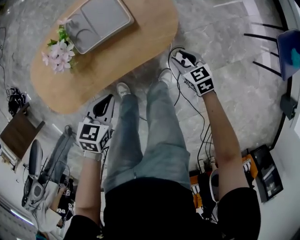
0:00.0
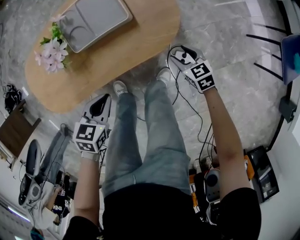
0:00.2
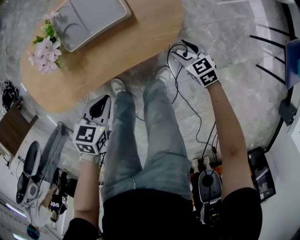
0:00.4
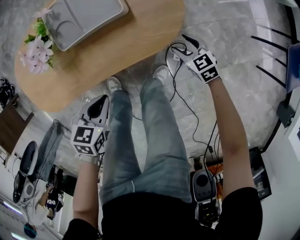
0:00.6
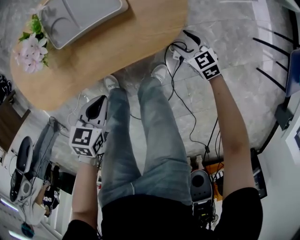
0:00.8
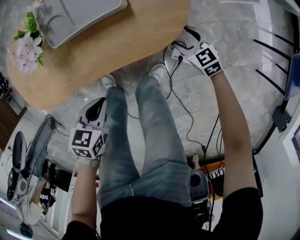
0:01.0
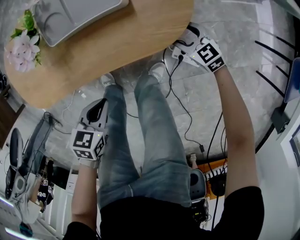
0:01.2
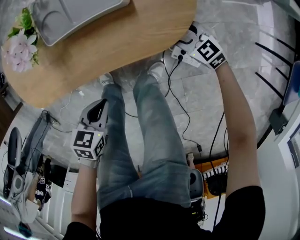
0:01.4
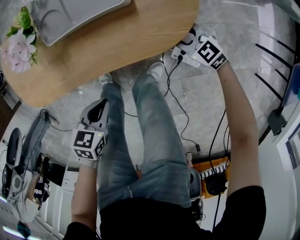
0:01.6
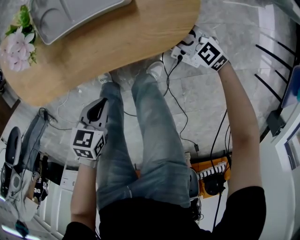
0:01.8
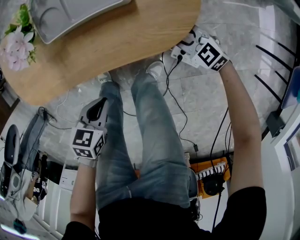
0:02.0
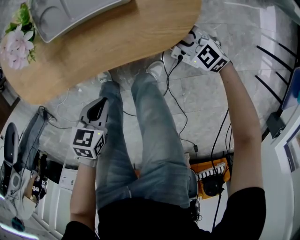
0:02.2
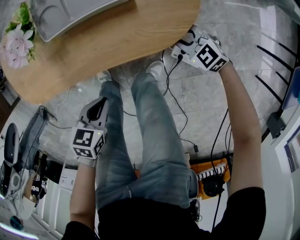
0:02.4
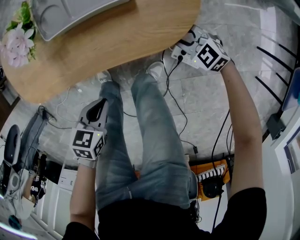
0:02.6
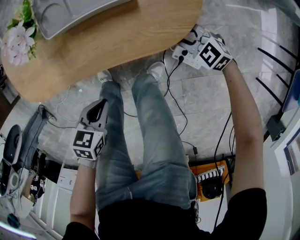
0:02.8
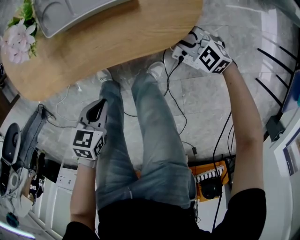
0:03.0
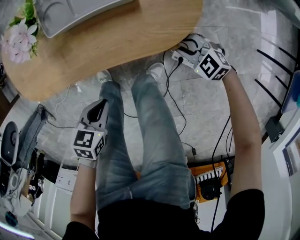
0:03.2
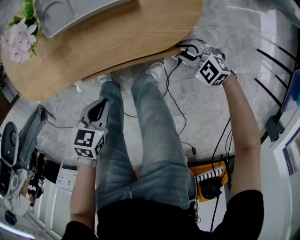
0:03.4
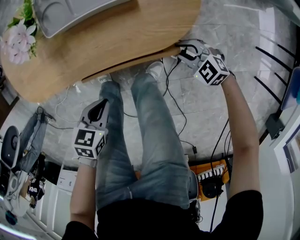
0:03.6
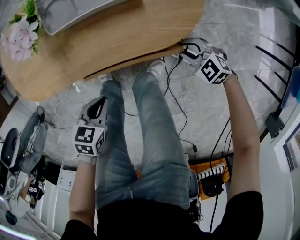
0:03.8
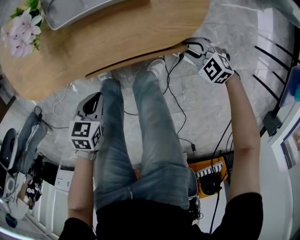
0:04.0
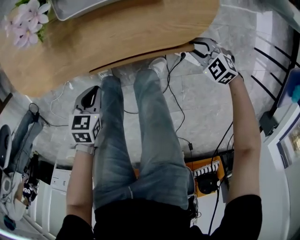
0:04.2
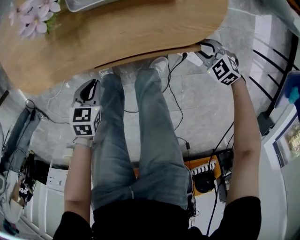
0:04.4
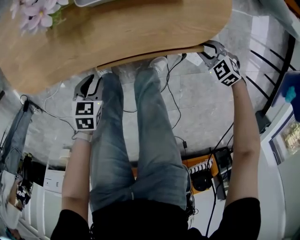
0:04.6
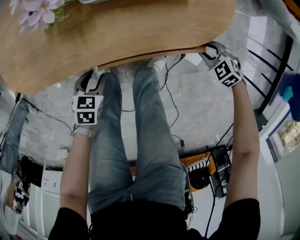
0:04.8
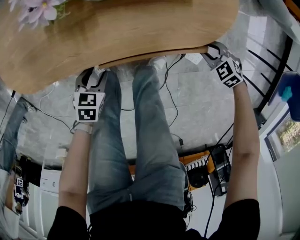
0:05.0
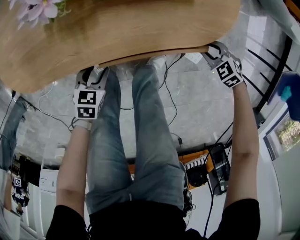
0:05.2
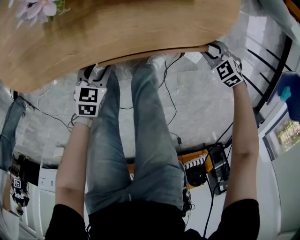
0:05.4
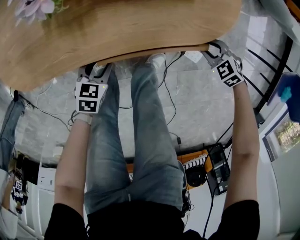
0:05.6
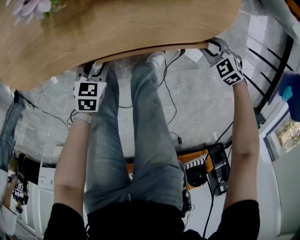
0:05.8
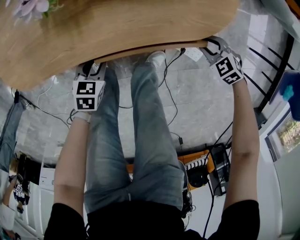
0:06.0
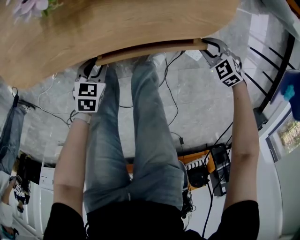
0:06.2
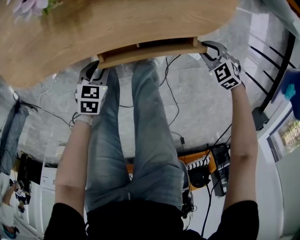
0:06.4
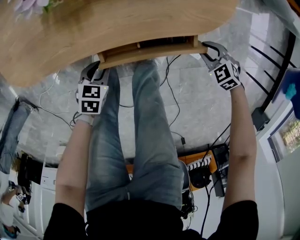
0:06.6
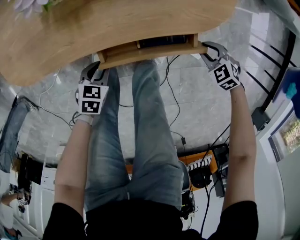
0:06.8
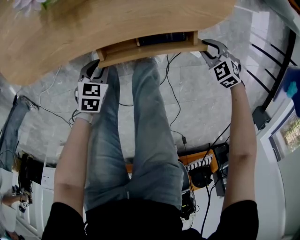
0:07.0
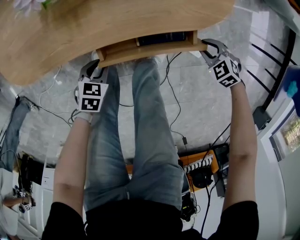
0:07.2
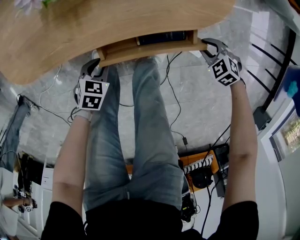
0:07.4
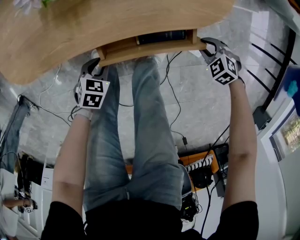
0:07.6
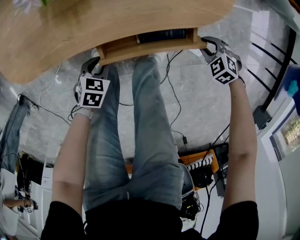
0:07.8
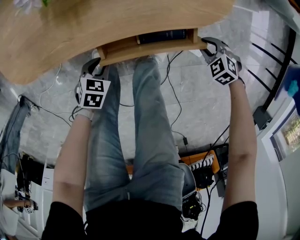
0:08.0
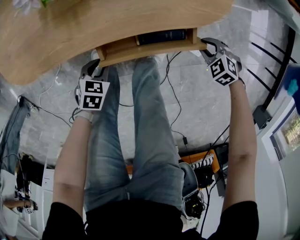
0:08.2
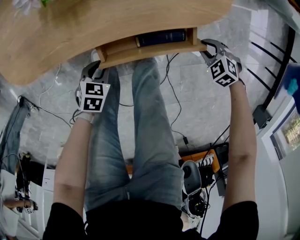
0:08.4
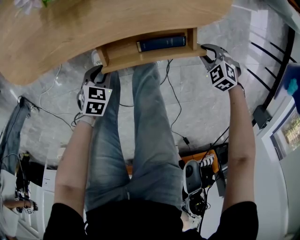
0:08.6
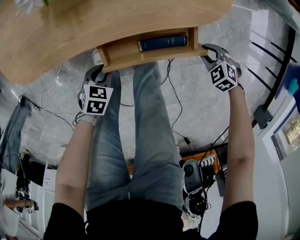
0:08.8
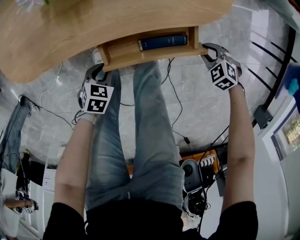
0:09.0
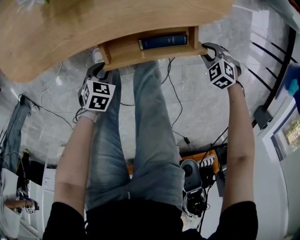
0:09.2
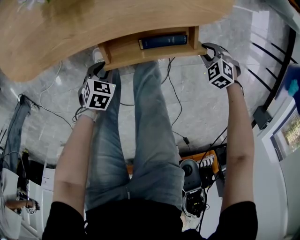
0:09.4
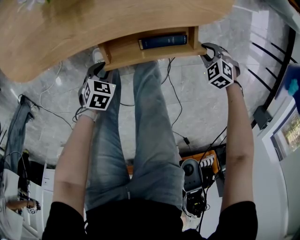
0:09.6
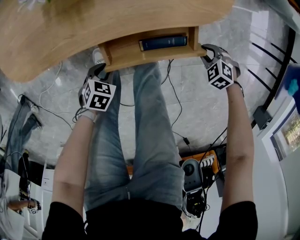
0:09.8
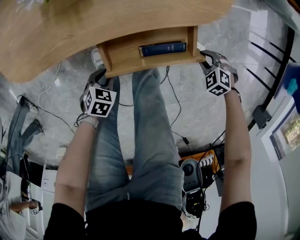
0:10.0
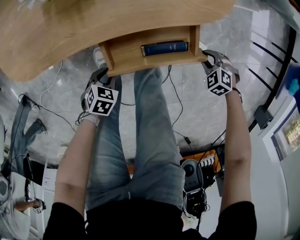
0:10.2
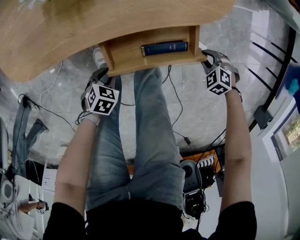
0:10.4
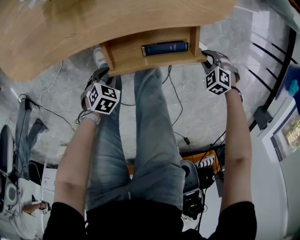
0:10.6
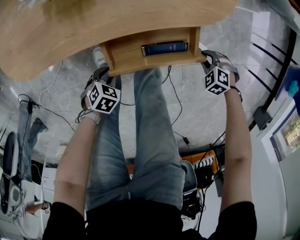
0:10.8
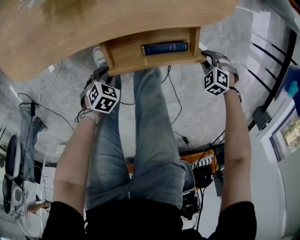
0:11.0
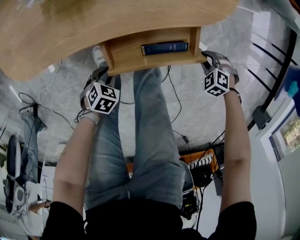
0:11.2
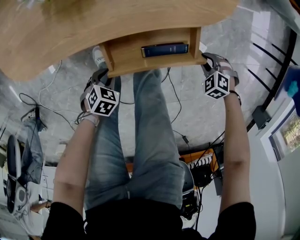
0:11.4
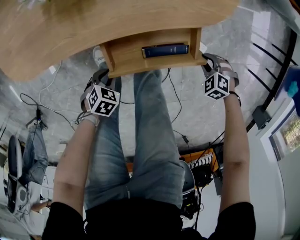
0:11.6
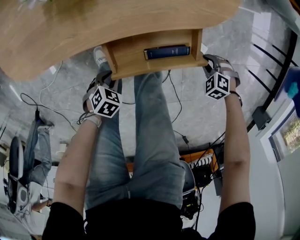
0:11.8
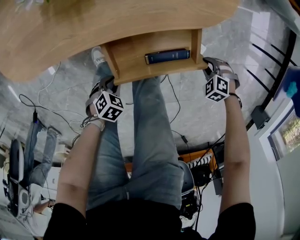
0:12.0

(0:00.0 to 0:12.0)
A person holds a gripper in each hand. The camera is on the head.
0:00.0 - 0:01.6: Both grippers move downward, some 15 cm. The right gripper turns by roughly 40 degrees, and opens, then closes once more.
0:01.6 - 0:03.0: The grippers stay close to where they were, moving slightly.
0:03.0 - 0:04.4: The right gripper ends up roughly 5 cm from where it was. The left gripper changes place by some 15 cm.
0:04.4 - 0:06.0: The left gripper goes approximately 10 cm downward, and opens up.
0:06.0 - 0:07.6: The left gripper moves some 5 cm. The right gripper shifts by approximately 5 cm.
0:07.6 - 0:09.0: The grippers make only small movements.
0:09.0 - 0:10.4: The left gripper ends up about 5 cm from where it was.
0:10.4 - 0:12.0: The grippers move only a little.

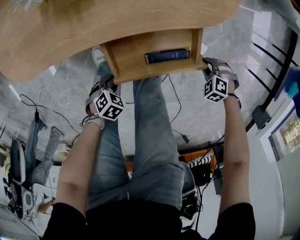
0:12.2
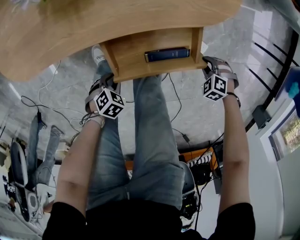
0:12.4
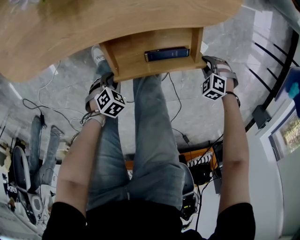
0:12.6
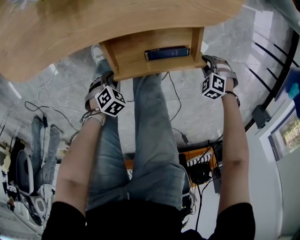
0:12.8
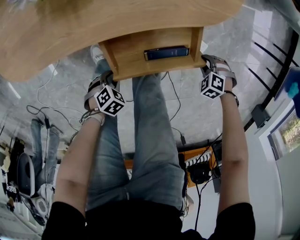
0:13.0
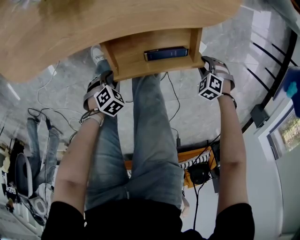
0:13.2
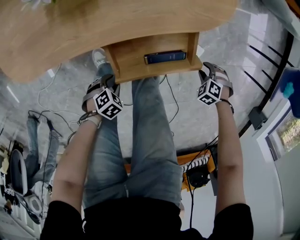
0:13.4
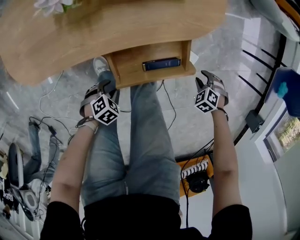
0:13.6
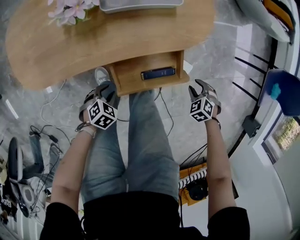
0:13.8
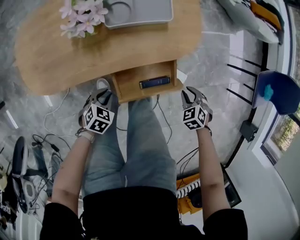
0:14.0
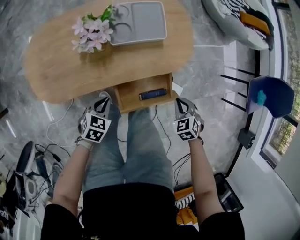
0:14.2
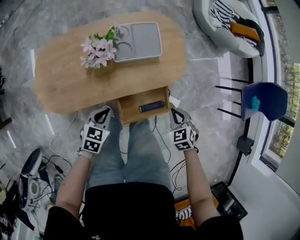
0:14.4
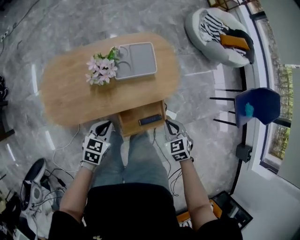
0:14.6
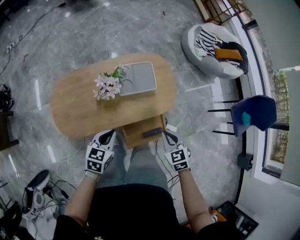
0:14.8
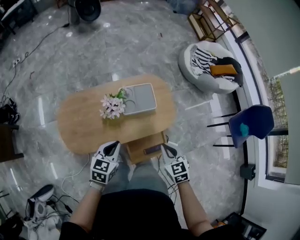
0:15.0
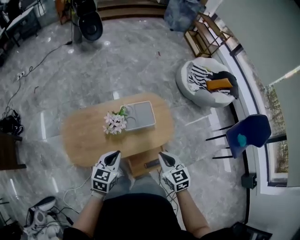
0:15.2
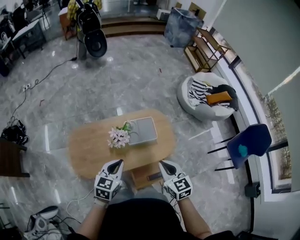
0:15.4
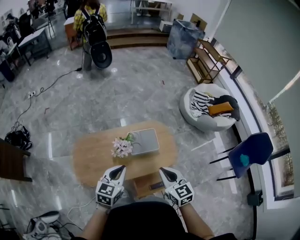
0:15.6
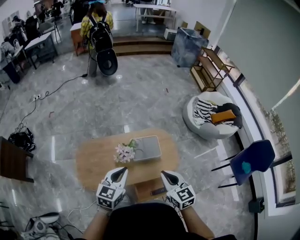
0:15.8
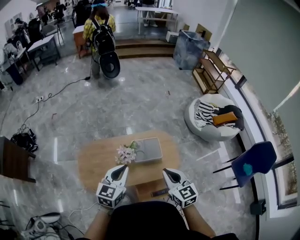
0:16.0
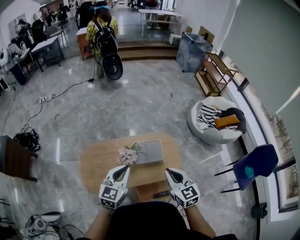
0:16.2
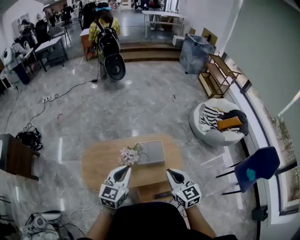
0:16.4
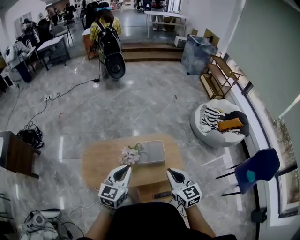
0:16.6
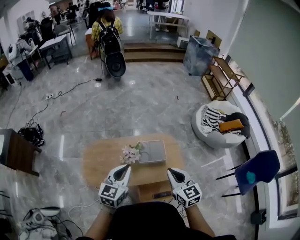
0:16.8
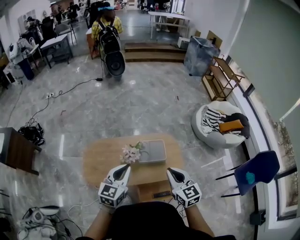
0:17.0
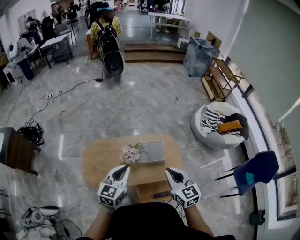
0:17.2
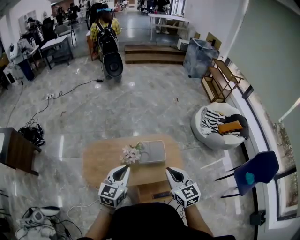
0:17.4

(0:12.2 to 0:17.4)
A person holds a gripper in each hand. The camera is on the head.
0:12.2 - 0:14.0: The grippers both shift upward by roughly 20 cm. The right gripper rotates roughly 30 degrees.
0:14.0 - 0:15.6: The two grippers go some 60 cm upward. The left gripper tips its fingers upward by about 40 degrees. Meanwhile the right gripper angles its fingers upward, by some 50 degrees.
0:15.6 - 0:17.4: The two grippers go some 5 cm upward.

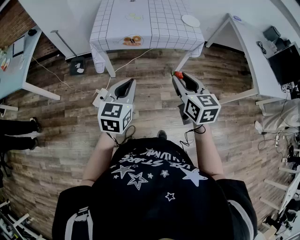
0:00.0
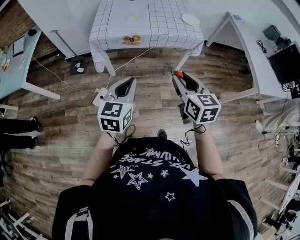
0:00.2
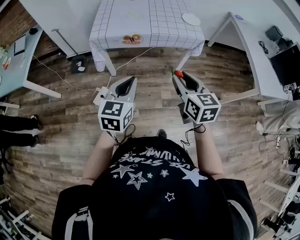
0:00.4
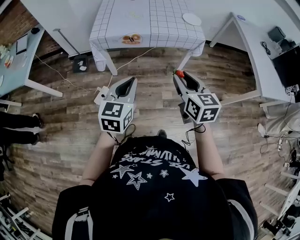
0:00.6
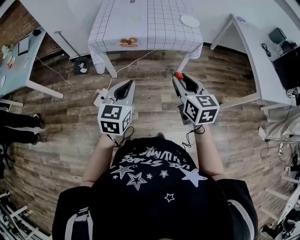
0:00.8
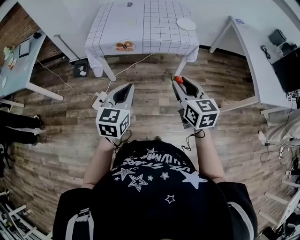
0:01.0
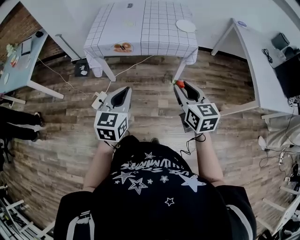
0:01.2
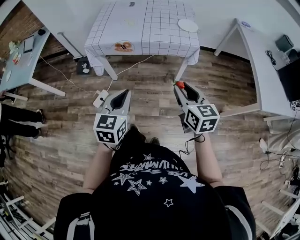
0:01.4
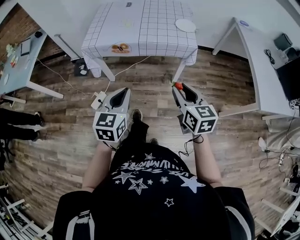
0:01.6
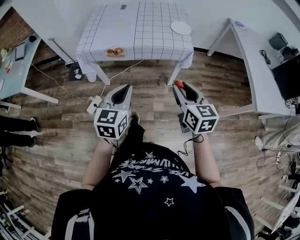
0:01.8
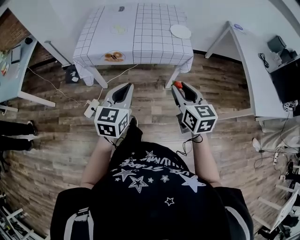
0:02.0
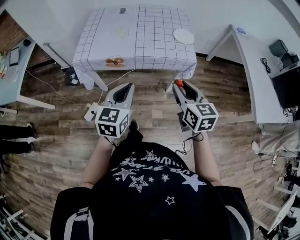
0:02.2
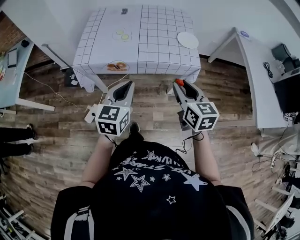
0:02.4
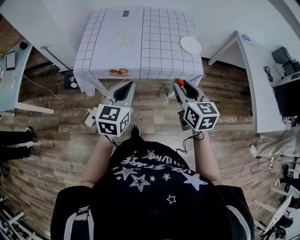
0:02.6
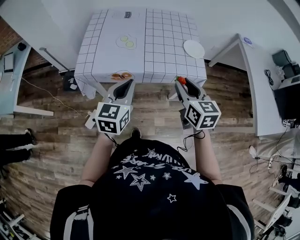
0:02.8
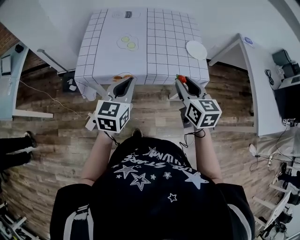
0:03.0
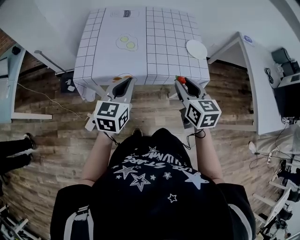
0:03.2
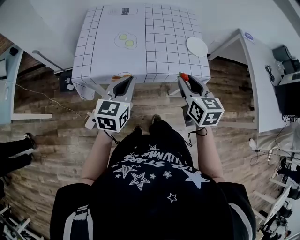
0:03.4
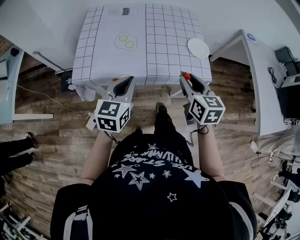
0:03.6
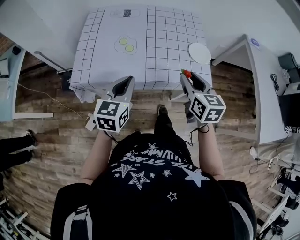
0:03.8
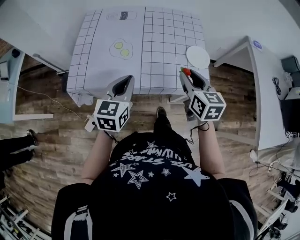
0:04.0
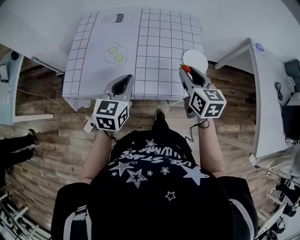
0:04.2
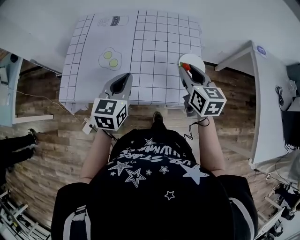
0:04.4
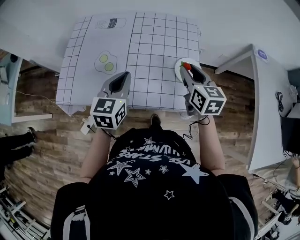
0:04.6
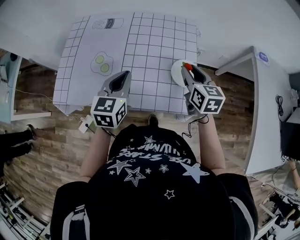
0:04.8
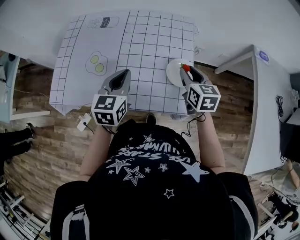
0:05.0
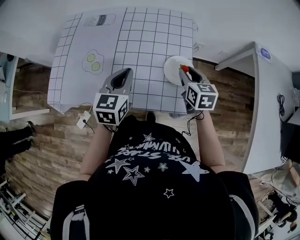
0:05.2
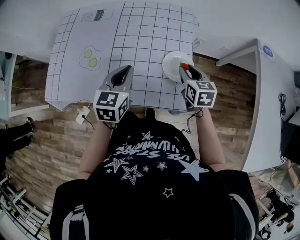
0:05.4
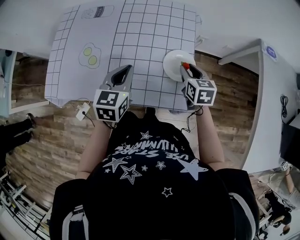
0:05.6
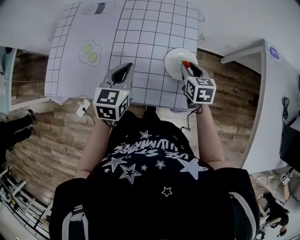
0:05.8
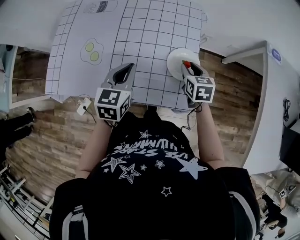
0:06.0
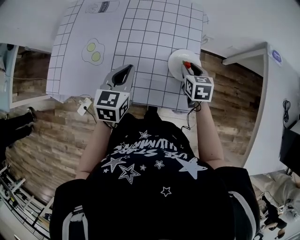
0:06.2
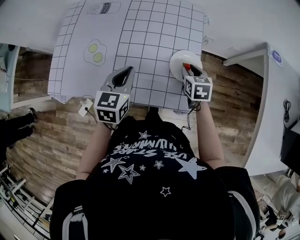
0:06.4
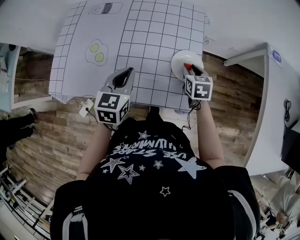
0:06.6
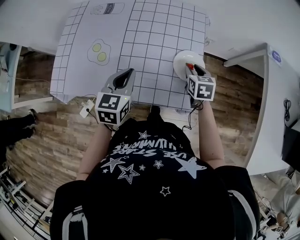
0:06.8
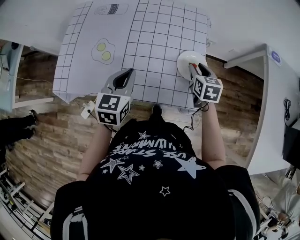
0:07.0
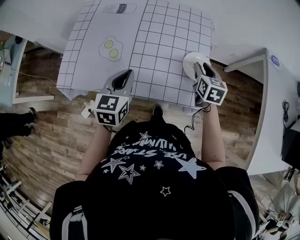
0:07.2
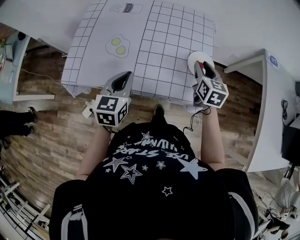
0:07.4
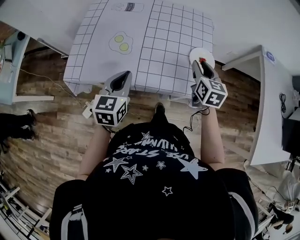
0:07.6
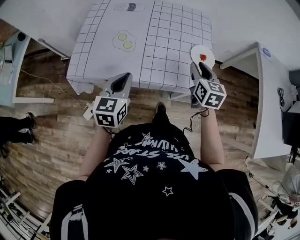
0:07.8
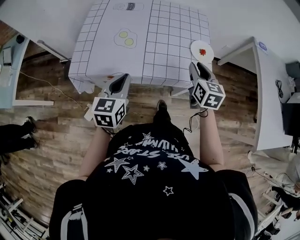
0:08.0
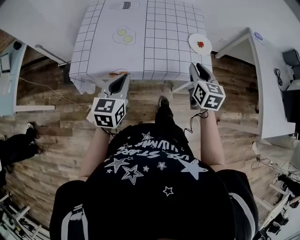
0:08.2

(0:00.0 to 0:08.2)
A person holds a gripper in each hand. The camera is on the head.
0:00.0 - 0:01.6: The grippers both shift to the right by some 15 cm.
0:01.6 - 0:03.2: The two grippers go approximately 30 cm forward.
0:03.2 - 0:05.0: The two grippers go roughly 30 cm forward and to the right.
0:05.0 - 0:06.6: The right gripper travels downward by roughly 10 cm.
0:06.6 - 0:08.2: The right gripper is displaced backward, upward and to the left by roughly 30 cm, and turns by roughly 20 degrees, while the left gripper heads backward and to the left, covering roughly 25 cm.
